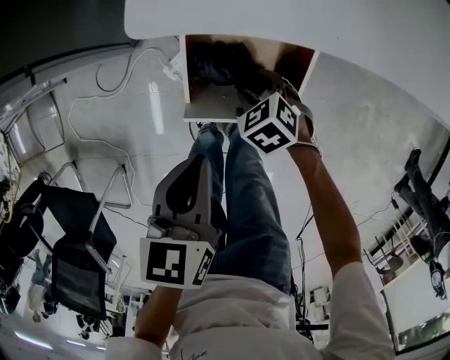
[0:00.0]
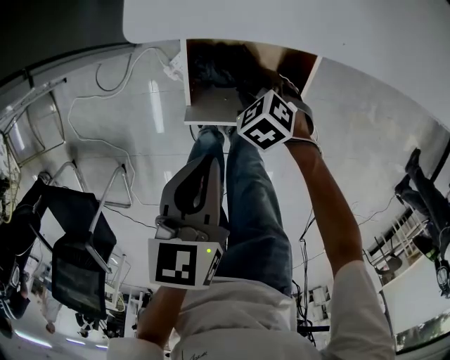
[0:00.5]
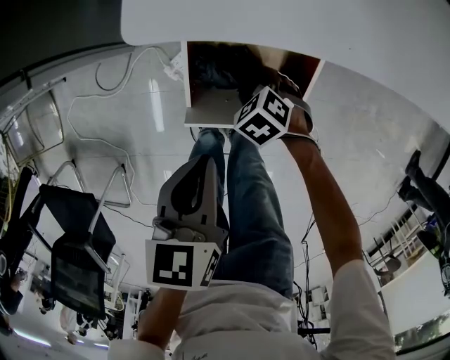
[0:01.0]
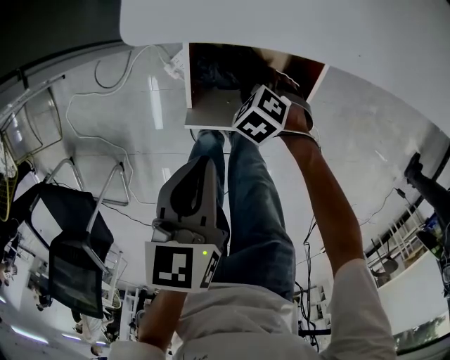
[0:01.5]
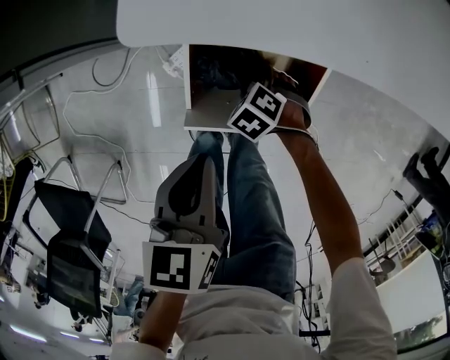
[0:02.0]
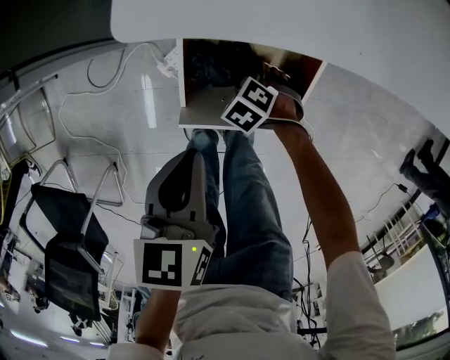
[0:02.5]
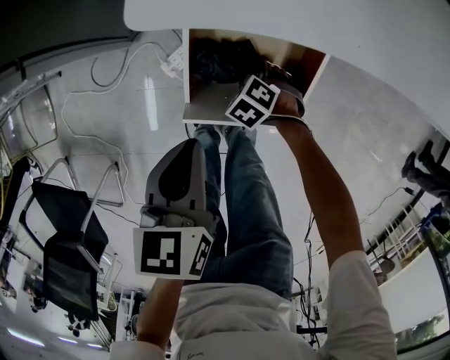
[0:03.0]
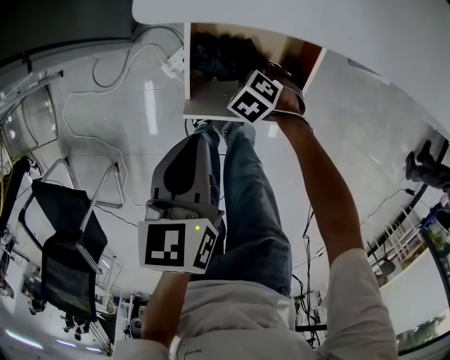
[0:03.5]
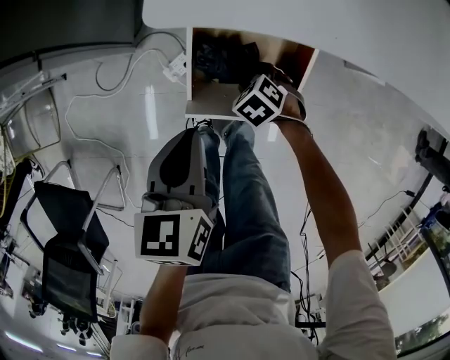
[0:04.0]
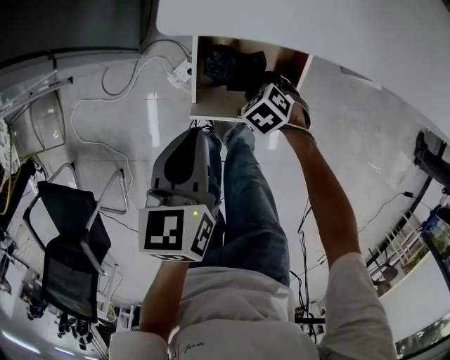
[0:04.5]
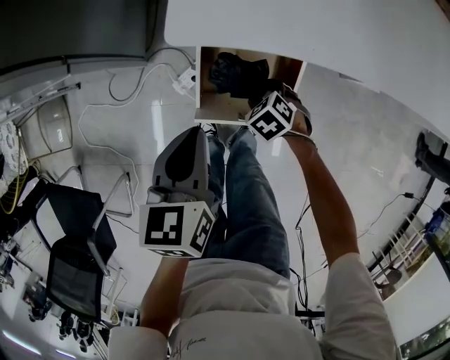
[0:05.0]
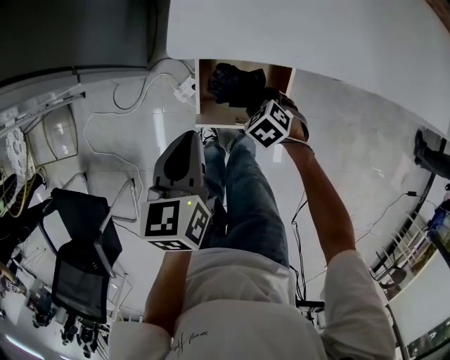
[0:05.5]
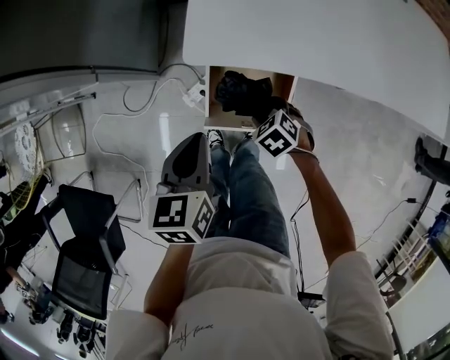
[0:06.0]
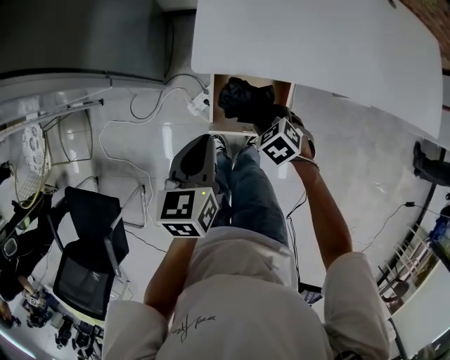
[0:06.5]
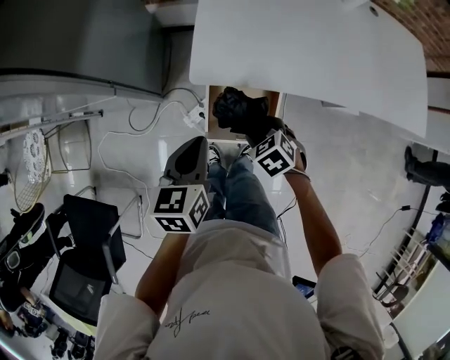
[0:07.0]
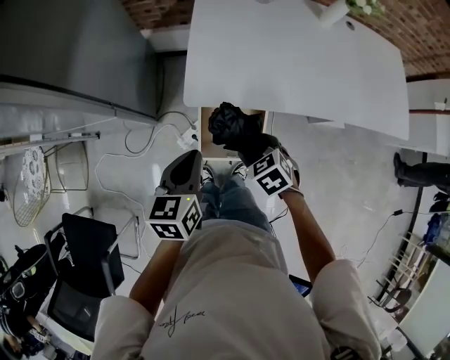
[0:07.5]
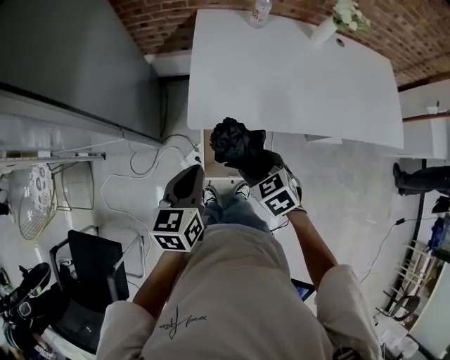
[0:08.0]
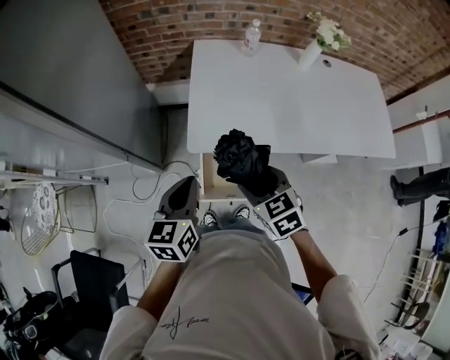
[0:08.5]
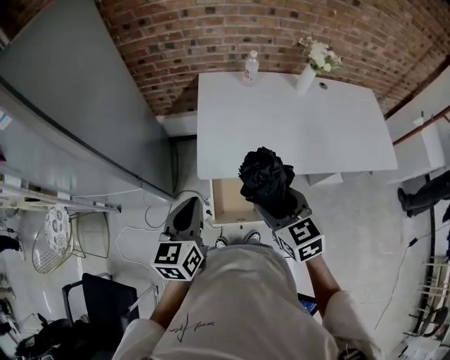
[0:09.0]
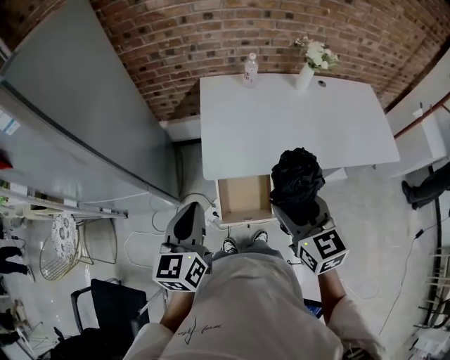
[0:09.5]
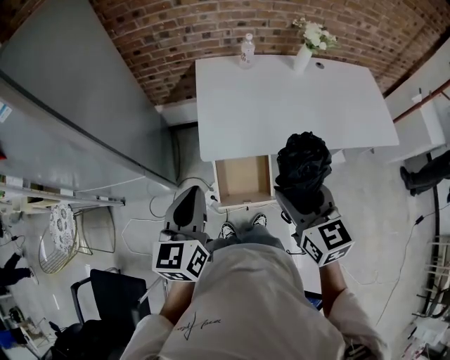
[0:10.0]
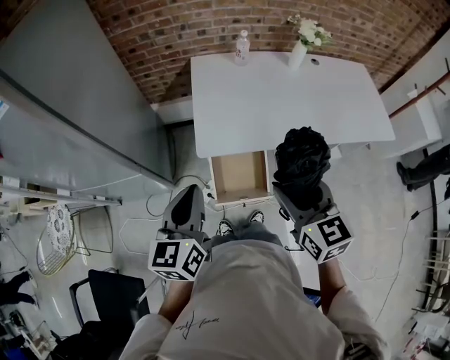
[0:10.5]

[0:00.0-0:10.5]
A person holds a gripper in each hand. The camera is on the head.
0:00.0 to 0:02.0: The right gripper goes some 10 cm downward.
0:02.0 to 0:04.0: There are only small adjustments of the grippers.
0:04.0 to 0:06.5: The right gripper travels upward by about 20 cm. The left gripper moves upward, some 10 cm.
0:06.5 to 0:08.5: The left gripper moves upward, about 15 cm. Meanwhile the right gripper travels upward by about 25 cm, and changes its angle by roughly 30 degrees.
0:08.5 to 0:10.5: The left gripper heads upward, covering roughly 10 cm. Meanwhile the right gripper travels upward and backward by roughly 15 cm, and rotates approximately 30 degrees.

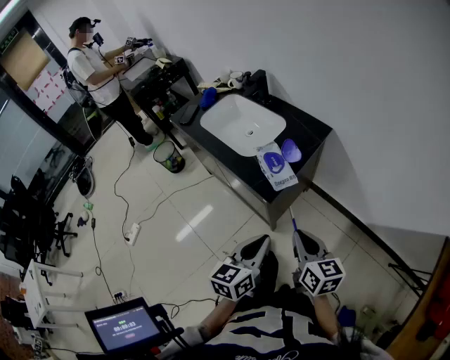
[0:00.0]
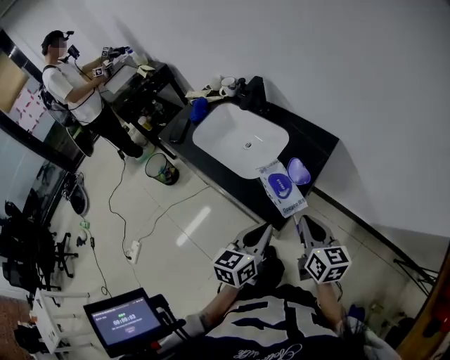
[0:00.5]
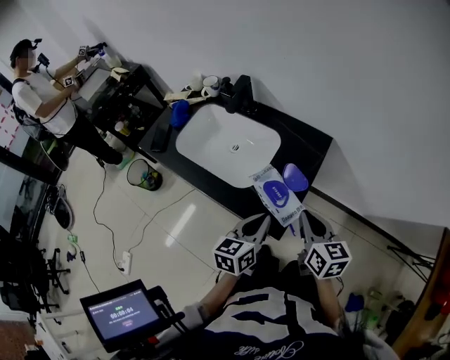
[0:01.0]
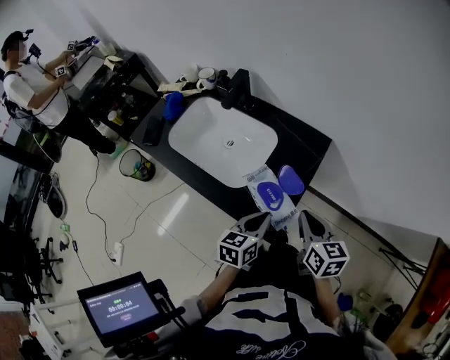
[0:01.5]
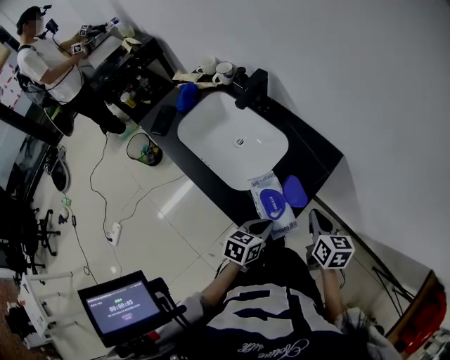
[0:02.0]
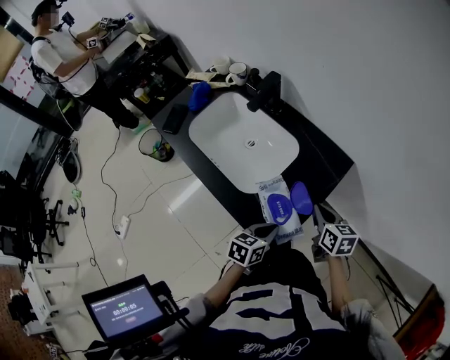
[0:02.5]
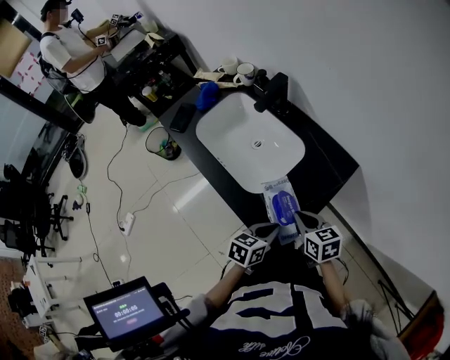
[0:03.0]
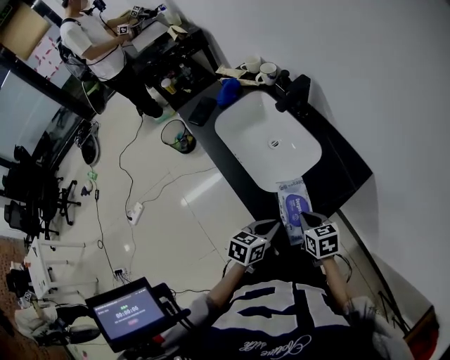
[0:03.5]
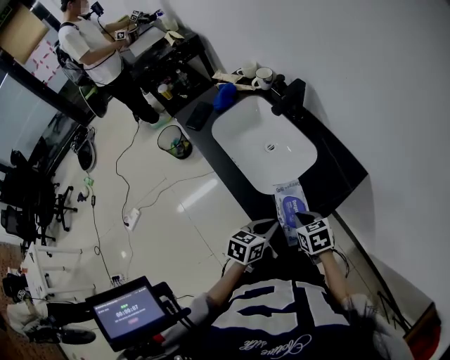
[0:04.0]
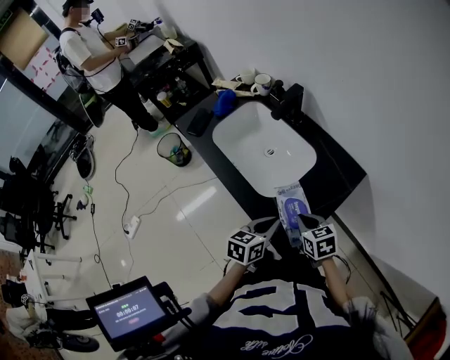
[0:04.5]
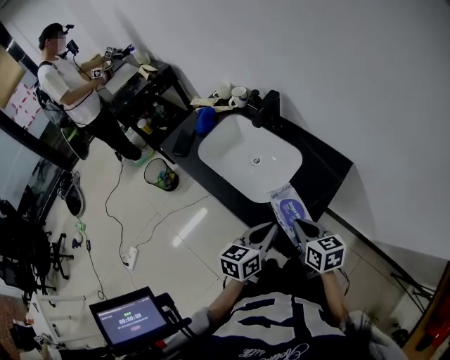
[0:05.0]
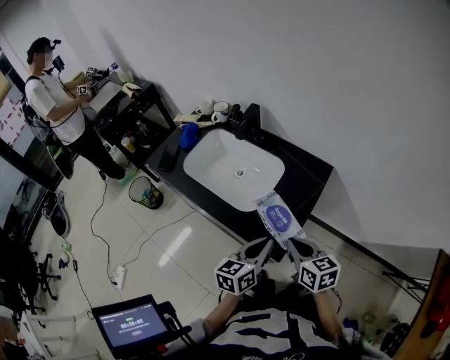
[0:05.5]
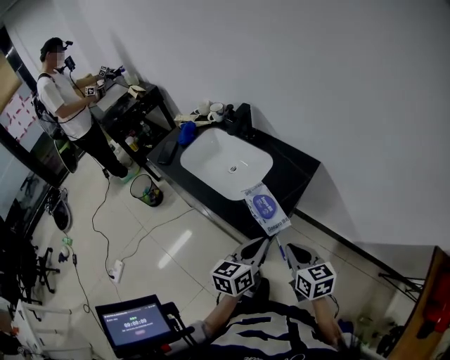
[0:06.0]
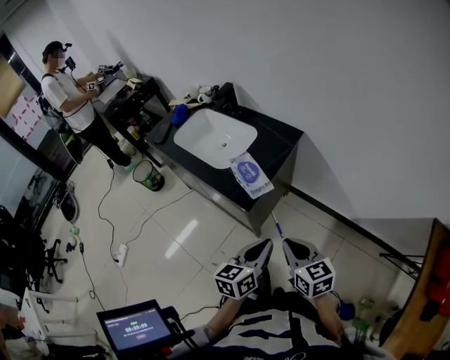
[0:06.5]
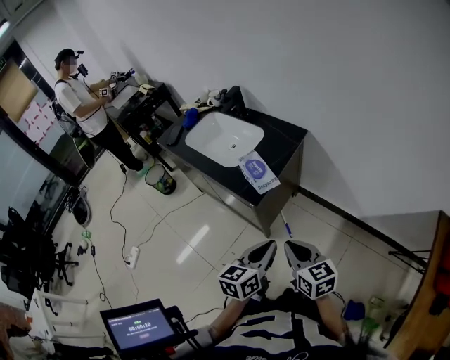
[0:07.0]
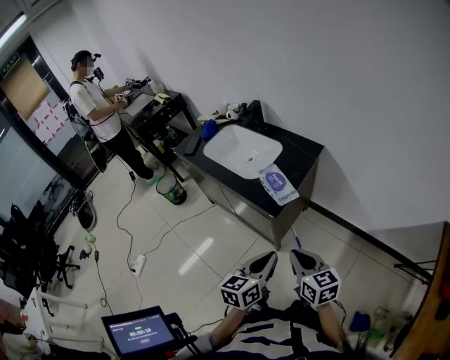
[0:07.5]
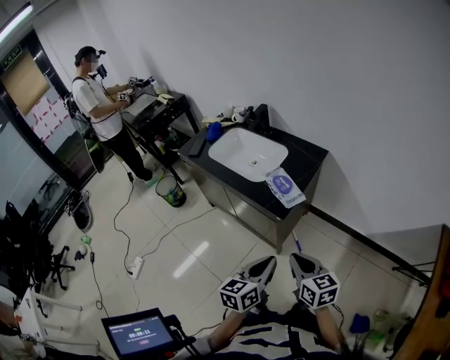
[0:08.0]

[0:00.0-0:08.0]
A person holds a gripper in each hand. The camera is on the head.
0:00.0 to 0:02.0: The left gripper moves forward and downward, approximately 30 cm, and changes its angle by roughly 30 degrees, while the right gripper shifts roughly 30 cm forward.
0:02.0 to 0:04.0: The left gripper travels to the left by approximately 5 cm; the right gripper moves to the left and downward, some 15 cm, and changes its angle by roughly 40 degrees.
0:04.0 to 0:06.0: The right gripper goes about 20 cm backward and upward, and changes its angle by roughly 30 degrees. Meanwhile the left gripper heads upward and backward, covering about 20 cm.
0:06.0 to 0:08.0: The two grippers go roughly 20 cm backward.

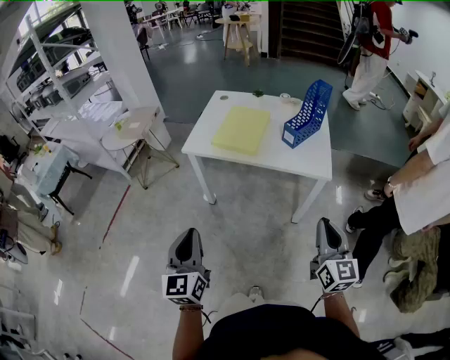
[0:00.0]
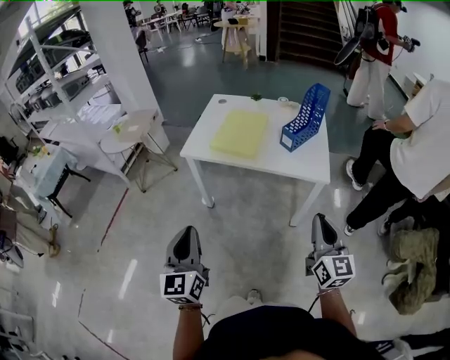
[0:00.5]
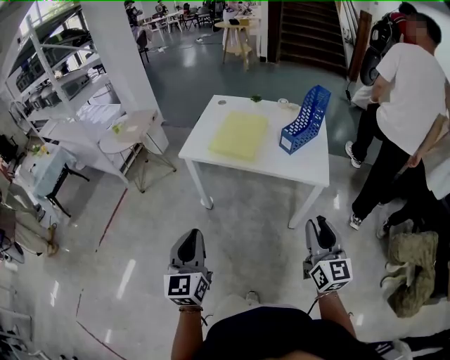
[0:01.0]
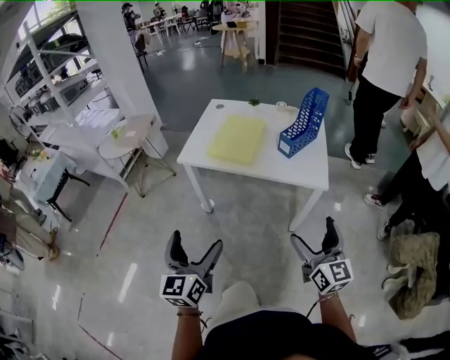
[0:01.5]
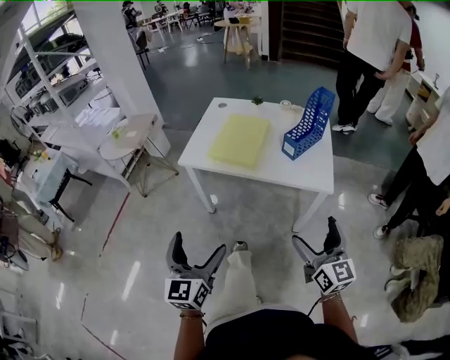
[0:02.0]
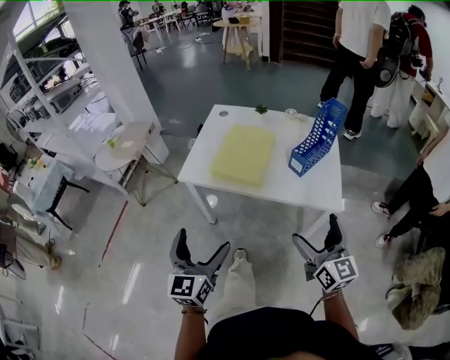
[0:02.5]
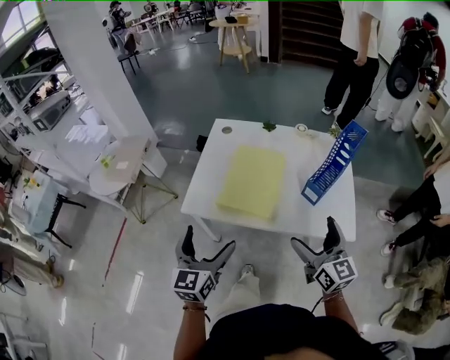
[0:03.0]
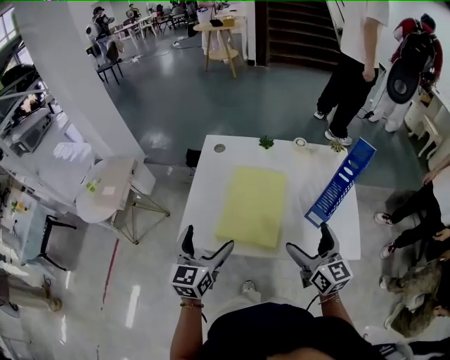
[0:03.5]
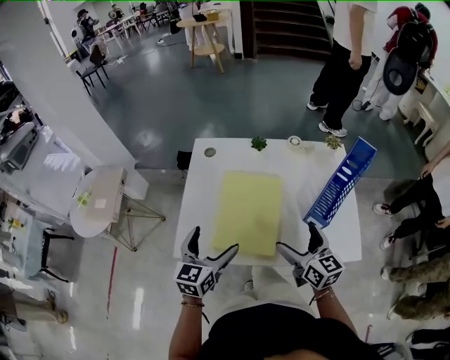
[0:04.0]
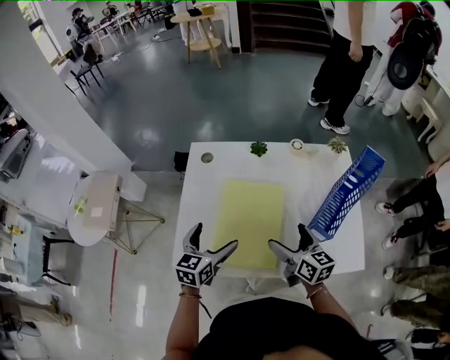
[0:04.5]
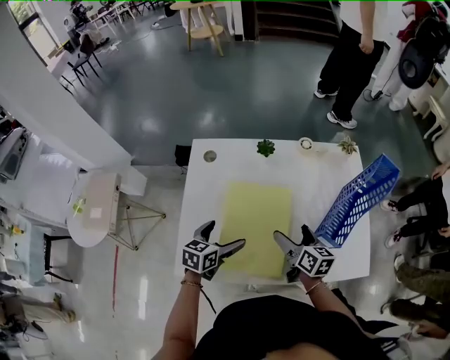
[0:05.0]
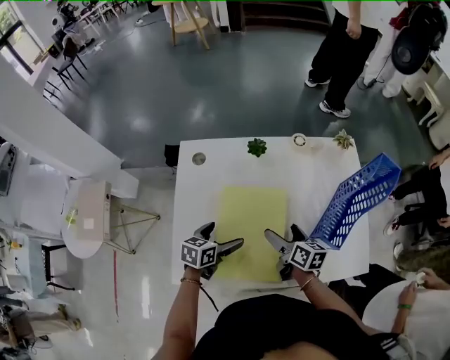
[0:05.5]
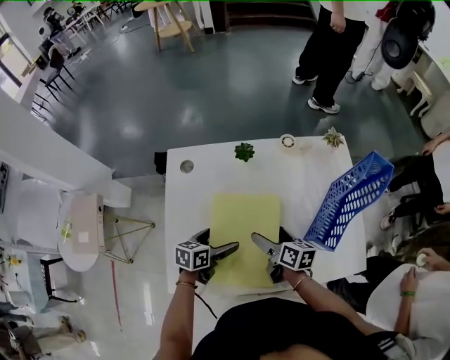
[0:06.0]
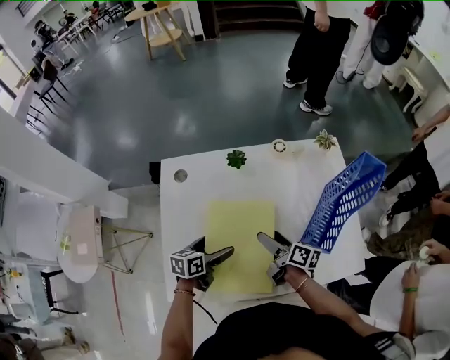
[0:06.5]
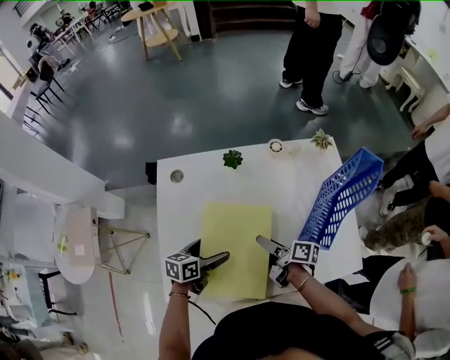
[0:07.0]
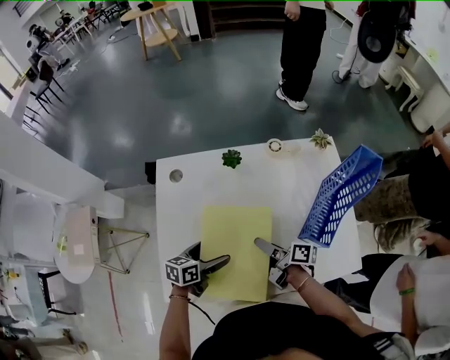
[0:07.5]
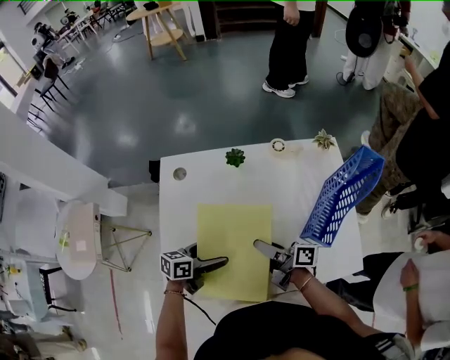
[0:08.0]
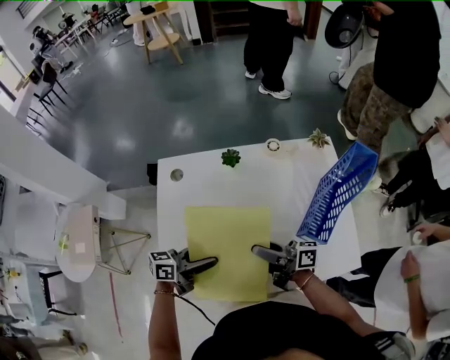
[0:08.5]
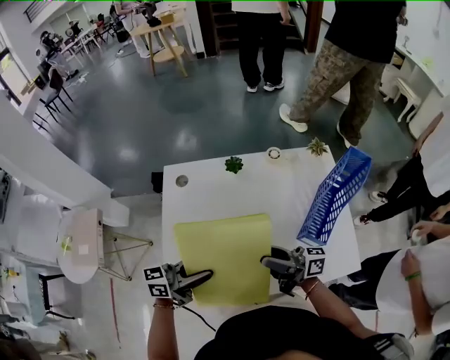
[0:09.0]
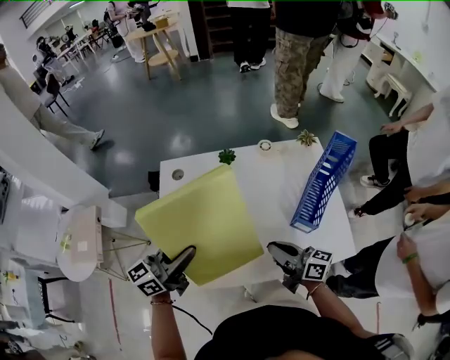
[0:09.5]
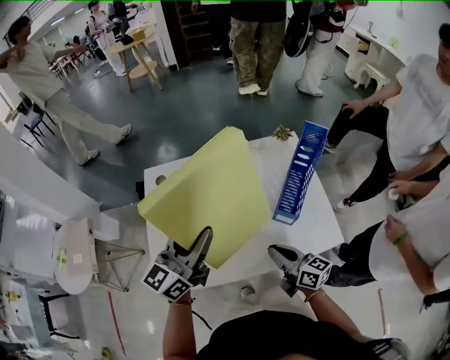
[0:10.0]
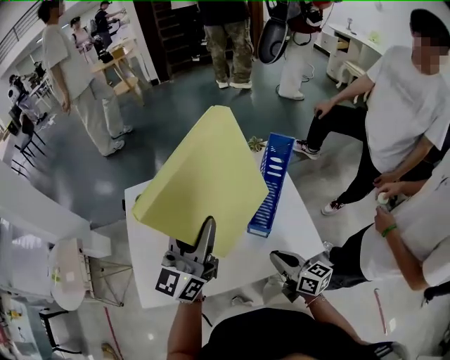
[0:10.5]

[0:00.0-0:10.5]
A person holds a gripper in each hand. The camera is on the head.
0:00.0 to 0:02.0: The two grippers go roughly 5 cm forward. The right gripper opens its fingers. The left gripper opens.
0:02.0 to 0:04.0: The pair of grippers is taken forward, approximately 50 cm. The left gripper rotates roughly 30 degrees.
0:04.0 to 0:06.5: The two grippers go about 20 cm forward and downward. The right gripper rotates around the line of its fingers by about 50 degrees, clockwise from behind; the left gripper changes its angle by about 40 degrees.
0:06.5 to 0:08.5: The two grippers go some 10 cm upward. The right gripper swivels roughly 40 degrees, and closes. Meanwhile the left gripper turns by roughly 30 degrees, and closes its fingers.
0:08.5 to 0:10.5: The right gripper shifts by approximately 25 cm, and rotates about 50 degrees, while the left gripper is displaced upward by approximately 30 cm, and changes its angle by roughly 60 degrees.
